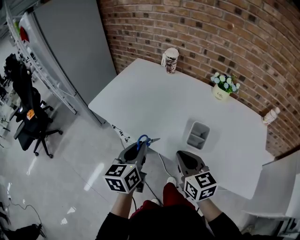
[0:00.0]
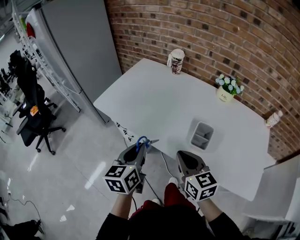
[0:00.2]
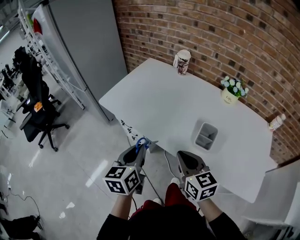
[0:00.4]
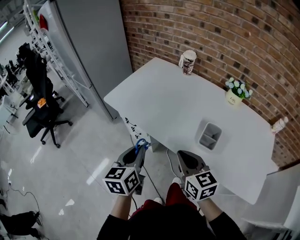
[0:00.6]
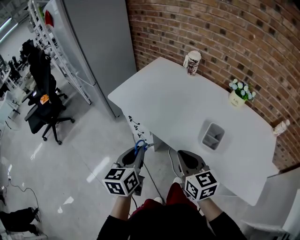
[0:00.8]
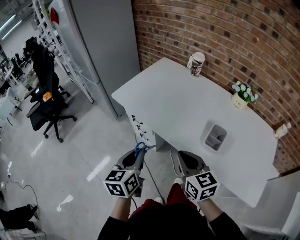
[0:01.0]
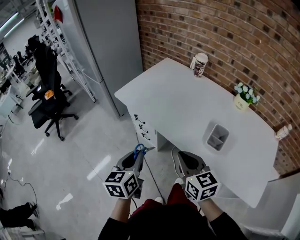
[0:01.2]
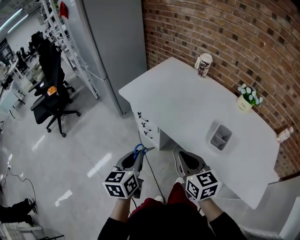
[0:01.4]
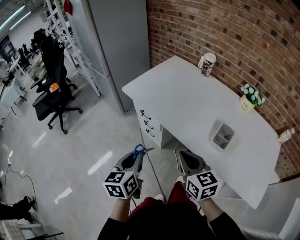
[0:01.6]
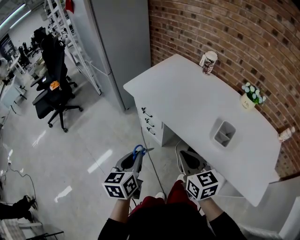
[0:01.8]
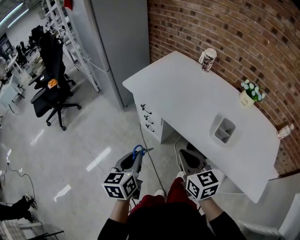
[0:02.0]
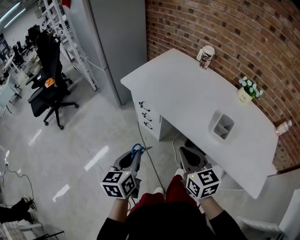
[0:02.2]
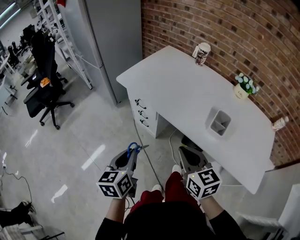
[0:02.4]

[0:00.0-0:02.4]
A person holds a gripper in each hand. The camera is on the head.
0:00.0 to 0:01.2: The left gripper heads to the left and backward, covering approximately 15 cm. The right gripper goes roughly 10 cm to the left.
0:01.2 to 0:02.4: The left gripper is displaced to the left and backward by roughly 10 cm; the right gripper moves roughly 5 cm.

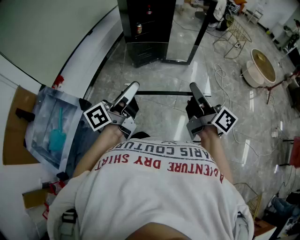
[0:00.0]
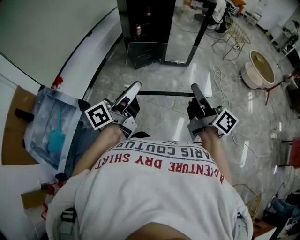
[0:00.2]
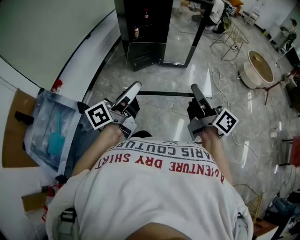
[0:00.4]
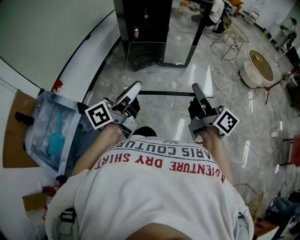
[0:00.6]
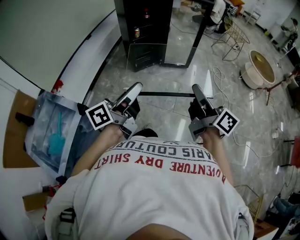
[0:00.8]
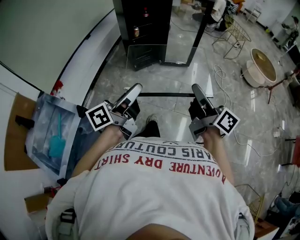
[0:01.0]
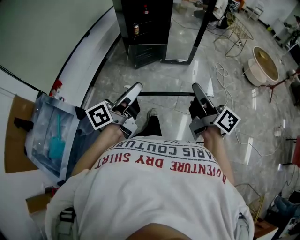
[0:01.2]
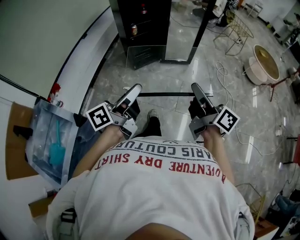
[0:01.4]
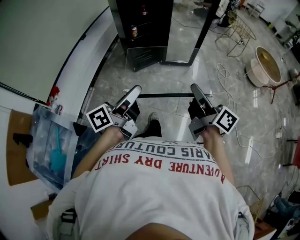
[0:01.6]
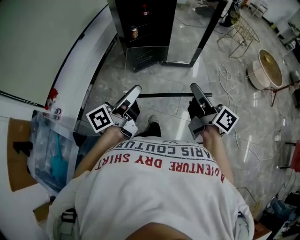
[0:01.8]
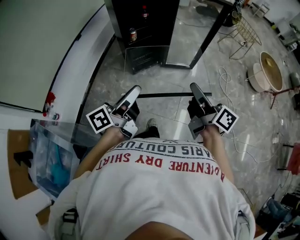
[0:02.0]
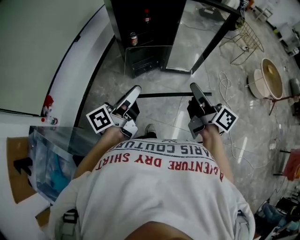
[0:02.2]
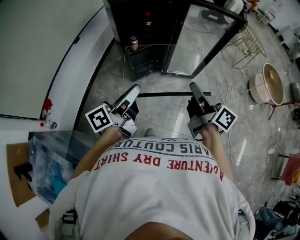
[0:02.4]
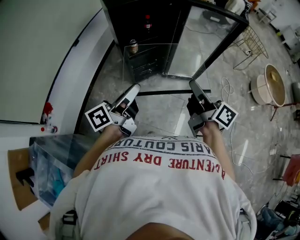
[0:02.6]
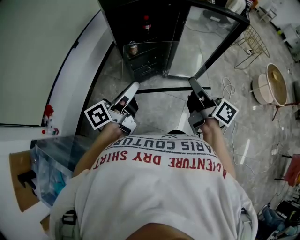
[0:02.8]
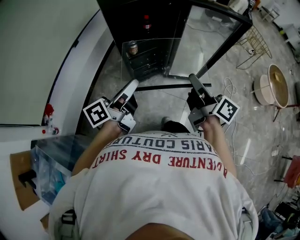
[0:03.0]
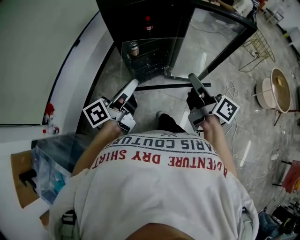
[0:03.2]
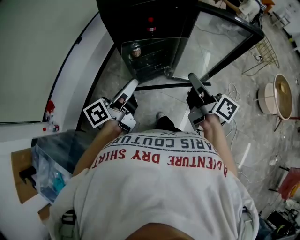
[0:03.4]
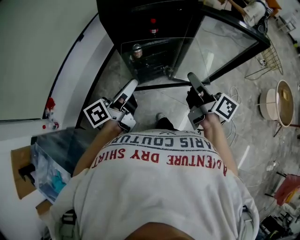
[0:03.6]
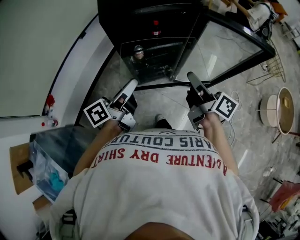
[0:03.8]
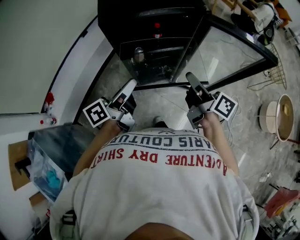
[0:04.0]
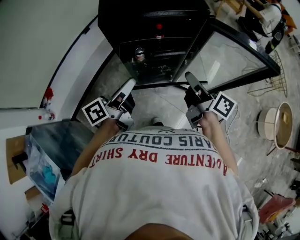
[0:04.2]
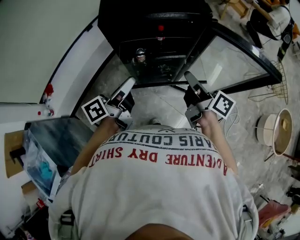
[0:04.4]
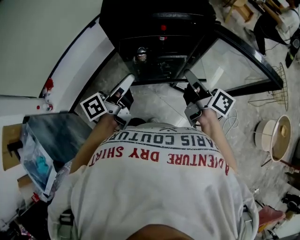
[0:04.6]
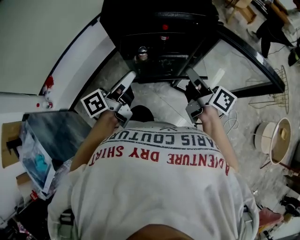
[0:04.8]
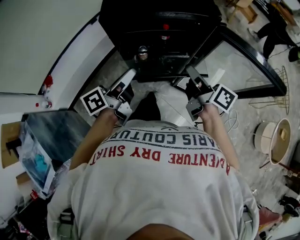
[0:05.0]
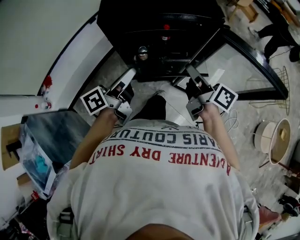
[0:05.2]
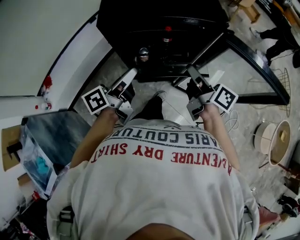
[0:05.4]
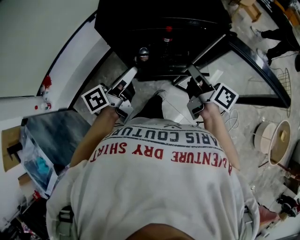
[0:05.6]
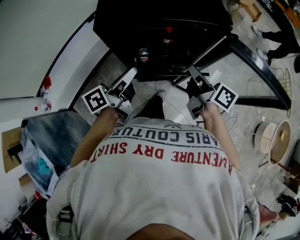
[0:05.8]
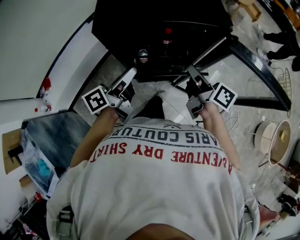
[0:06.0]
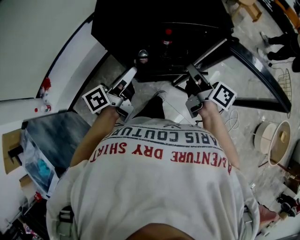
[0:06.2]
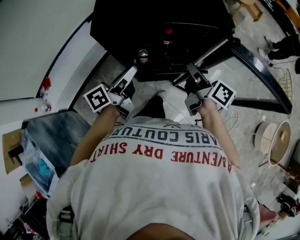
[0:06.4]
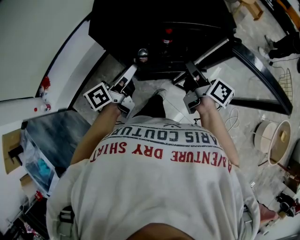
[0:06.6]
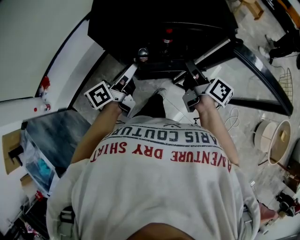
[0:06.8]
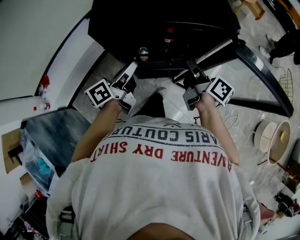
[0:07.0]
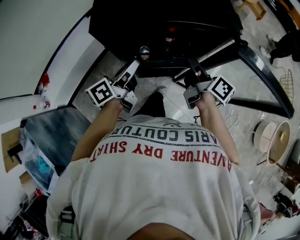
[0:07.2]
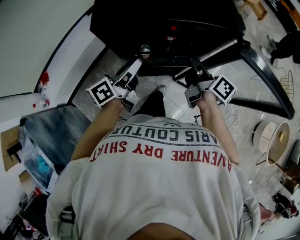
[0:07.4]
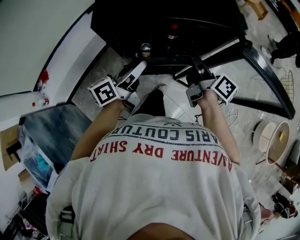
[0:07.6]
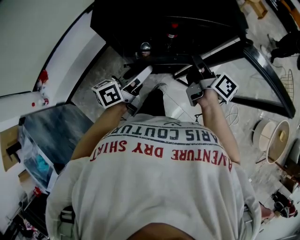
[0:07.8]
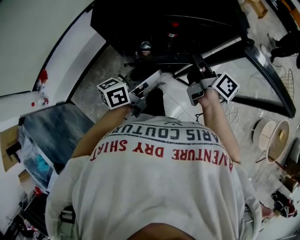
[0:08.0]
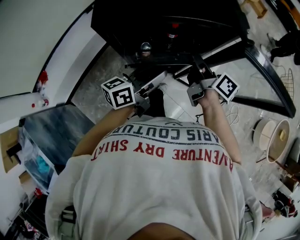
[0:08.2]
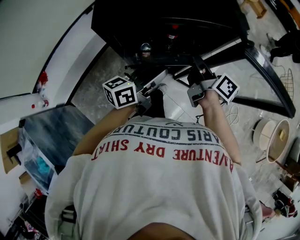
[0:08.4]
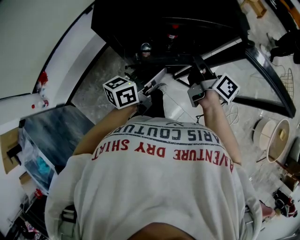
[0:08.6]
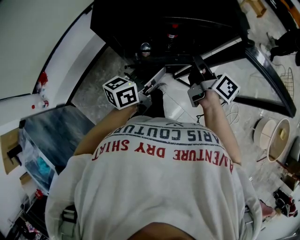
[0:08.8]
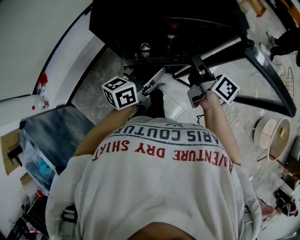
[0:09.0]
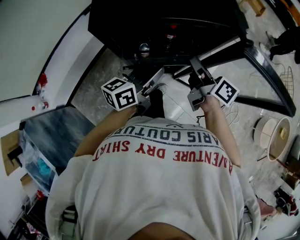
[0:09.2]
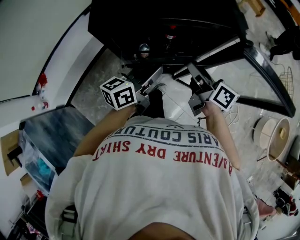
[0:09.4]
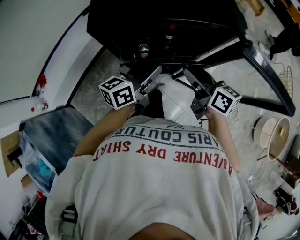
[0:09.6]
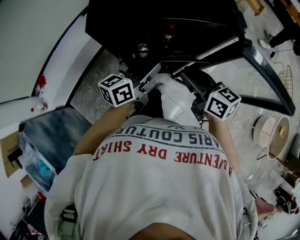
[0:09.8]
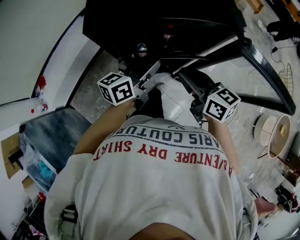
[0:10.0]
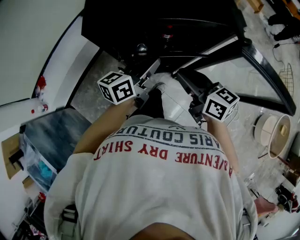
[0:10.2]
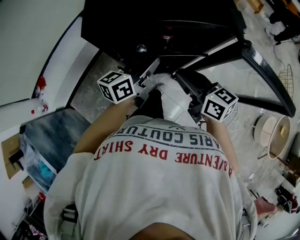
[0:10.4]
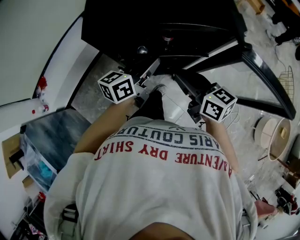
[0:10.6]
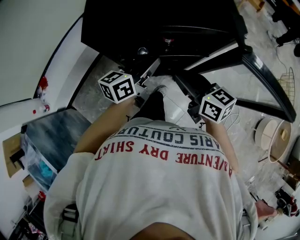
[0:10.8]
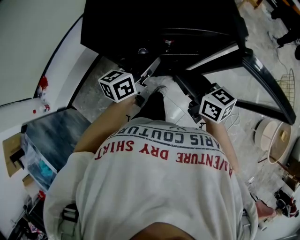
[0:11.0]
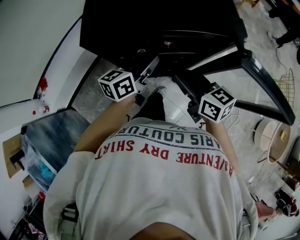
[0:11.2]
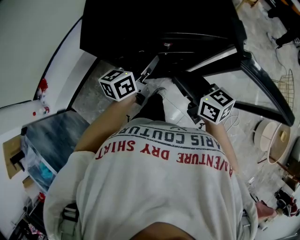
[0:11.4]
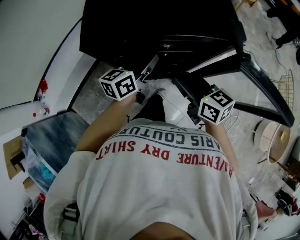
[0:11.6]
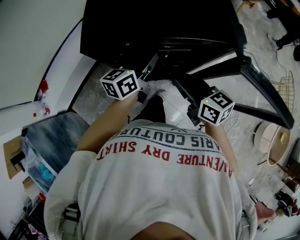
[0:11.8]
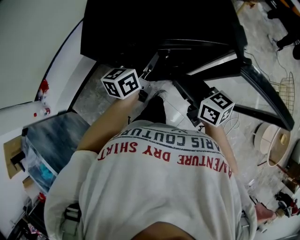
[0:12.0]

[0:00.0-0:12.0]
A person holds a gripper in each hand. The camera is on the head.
0:00.0 to 0:01.6: Both grippers move forward, approximately 10 cm.
0:01.6 to 0:03.0: The two grippers go about 35 cm forward.
0:03.0 to 0:04.4: Both grippers move forward, about 20 cm.
0:04.4 to 0:06.0: Both grippers travel together forward, about 10 cm.
0:06.0 to 0:07.6: The right gripper ends up about 5 cm from where it was; the left gripper opens up.
0:07.6 to 0:09.0: The left gripper is displaced to the right by approximately 5 cm, and closes up.
0:09.0 to 0:10.4: The right gripper goes some 10 cm backward and to the left, turns by roughly 40 degrees, and opens, then closes once more.
0:10.4 to 0:12.0: The left gripper travels forward by roughly 5 cm.

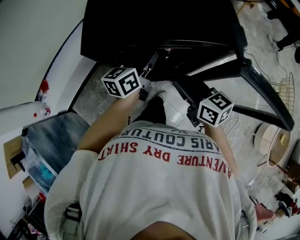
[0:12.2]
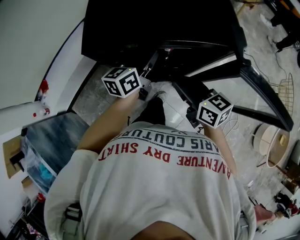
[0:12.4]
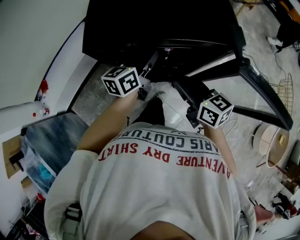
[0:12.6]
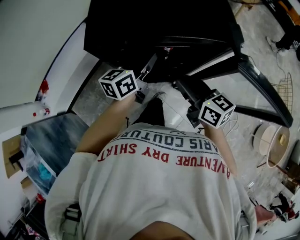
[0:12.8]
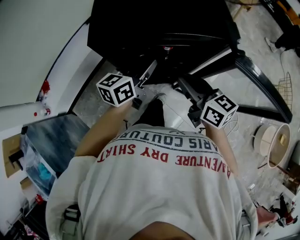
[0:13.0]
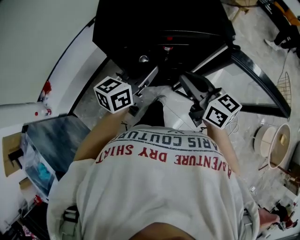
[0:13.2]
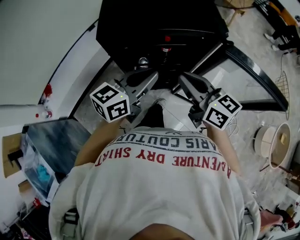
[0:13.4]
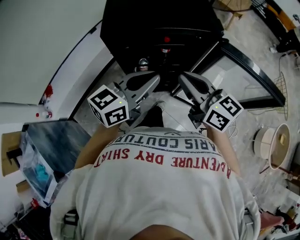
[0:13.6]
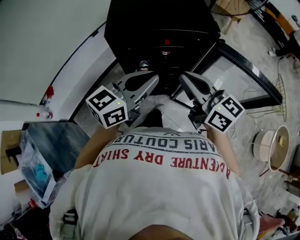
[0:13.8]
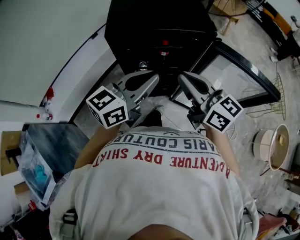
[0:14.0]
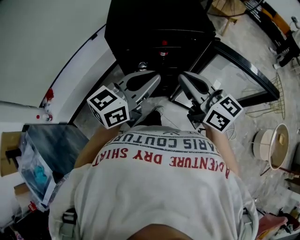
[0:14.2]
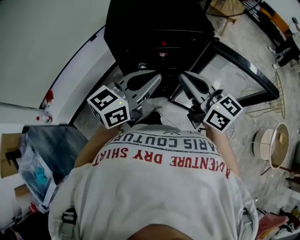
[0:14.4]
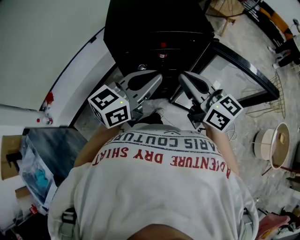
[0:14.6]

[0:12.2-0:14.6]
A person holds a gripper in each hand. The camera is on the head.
0:12.2 to 0:13.4: The left gripper shifts roughly 15 cm backward and upward, and swivels roughly 20 degrees; the right gripper travels upward by roughly 10 cm.
0:13.4 to 0:14.6: The grippers both shift upward by approximately 5 cm.

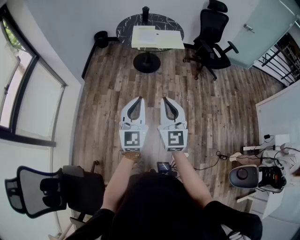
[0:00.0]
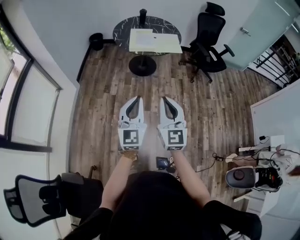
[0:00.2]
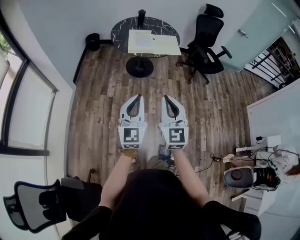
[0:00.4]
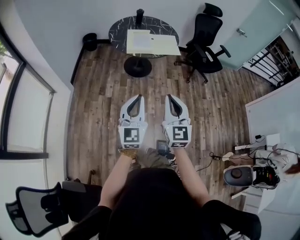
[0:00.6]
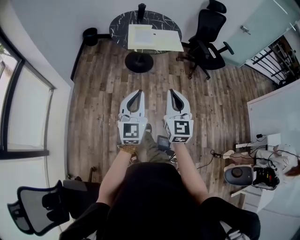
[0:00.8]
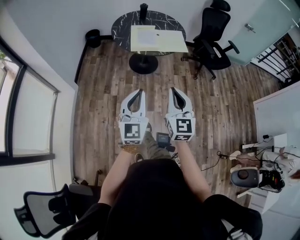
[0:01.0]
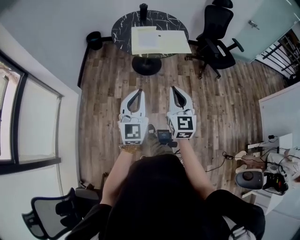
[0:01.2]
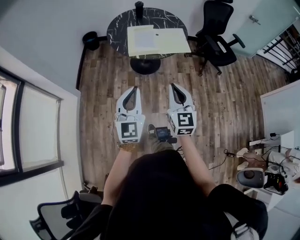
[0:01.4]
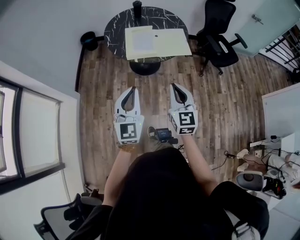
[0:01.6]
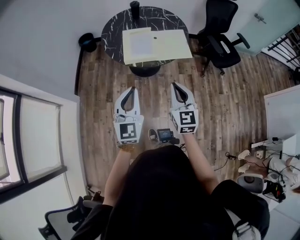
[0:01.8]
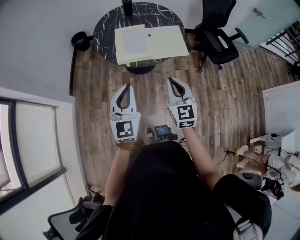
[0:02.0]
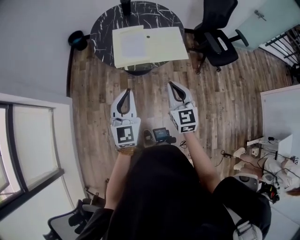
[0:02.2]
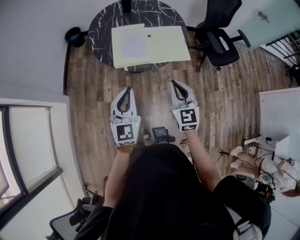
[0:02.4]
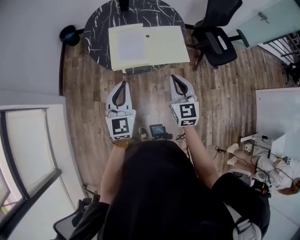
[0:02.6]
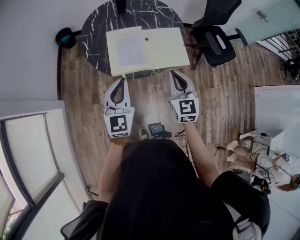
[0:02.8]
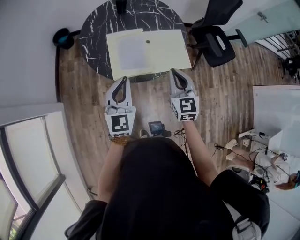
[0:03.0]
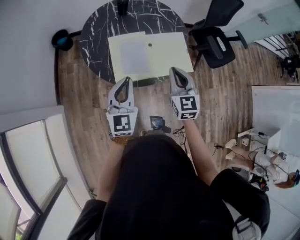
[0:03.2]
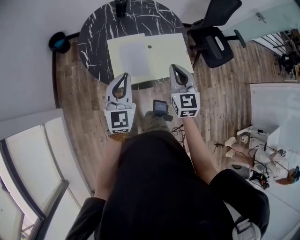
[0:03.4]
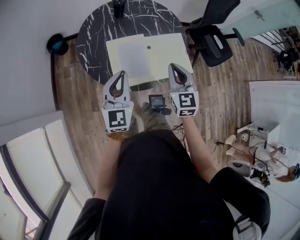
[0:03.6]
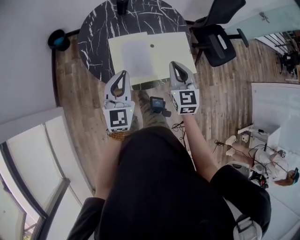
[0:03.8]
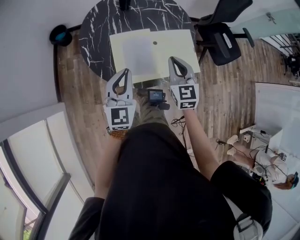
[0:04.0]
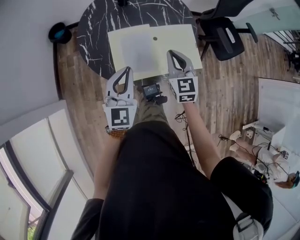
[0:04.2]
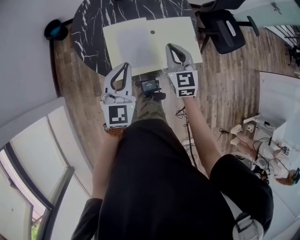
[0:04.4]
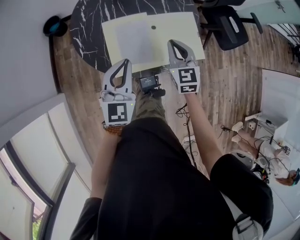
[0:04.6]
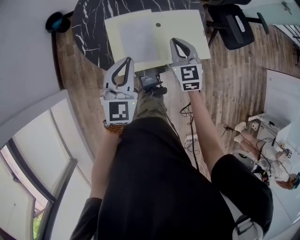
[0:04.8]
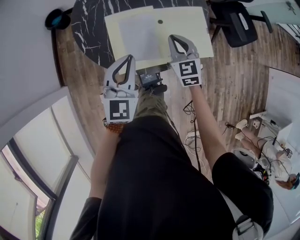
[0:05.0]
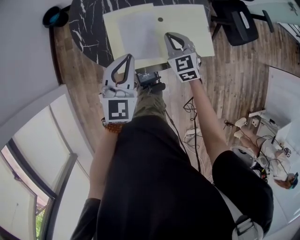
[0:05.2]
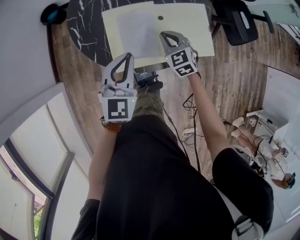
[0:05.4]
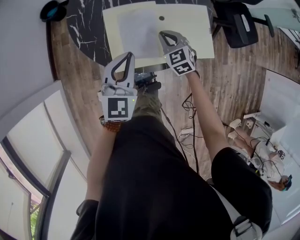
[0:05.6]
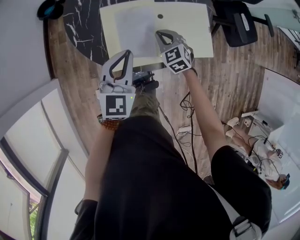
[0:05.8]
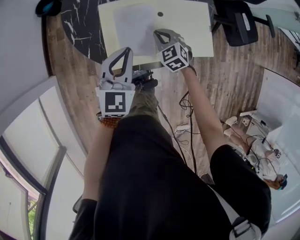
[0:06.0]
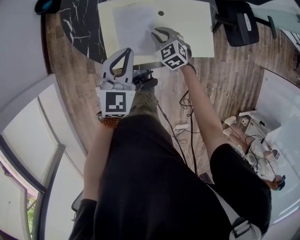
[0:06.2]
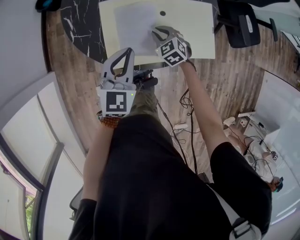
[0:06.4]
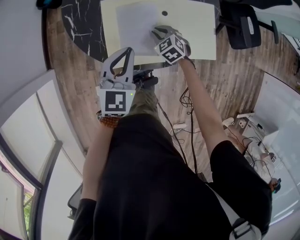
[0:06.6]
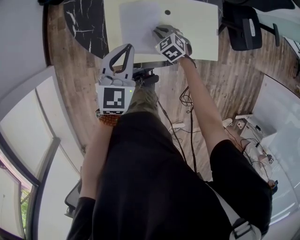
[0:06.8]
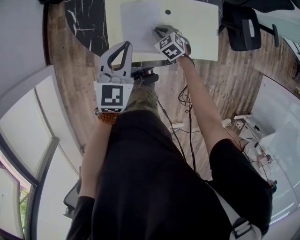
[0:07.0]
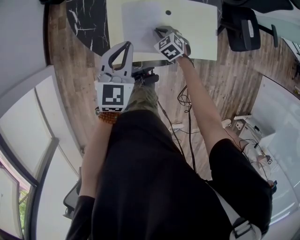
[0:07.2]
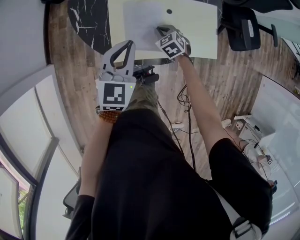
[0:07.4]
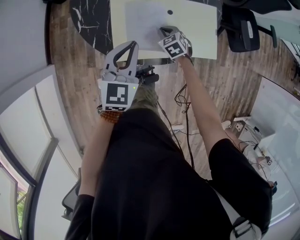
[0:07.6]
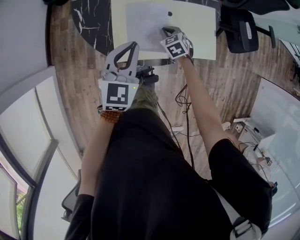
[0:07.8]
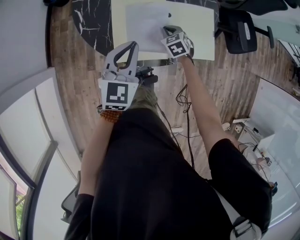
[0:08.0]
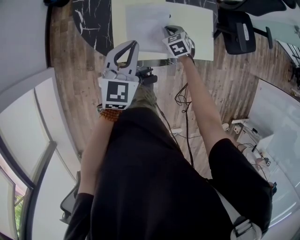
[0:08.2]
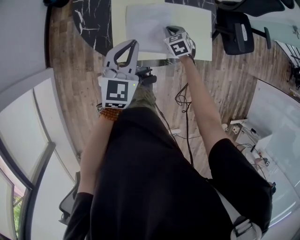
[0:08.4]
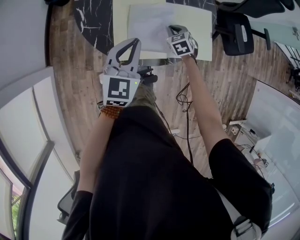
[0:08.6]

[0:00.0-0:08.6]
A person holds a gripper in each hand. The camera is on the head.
0:00.0 to 0:01.4: The grippers both shift forward by roughly 30 cm.
0:01.4 to 0:02.8: The grippers both shift forward by approximately 40 cm.
0:02.8 to 0:04.4: The right gripper goes about 20 cm forward and downward. Meanwhile the left gripper moves forward, about 15 cm.
0:04.4 to 0:05.8: The left gripper heads downward, covering some 10 cm. The right gripper moves downward, approximately 20 cm, and turns by about 30 degrees.
0:05.8 to 0:07.2: The right gripper is displaced downward by roughly 10 cm.
0:07.2 to 0:08.6: The right gripper is displaced upward by about 5 cm.
